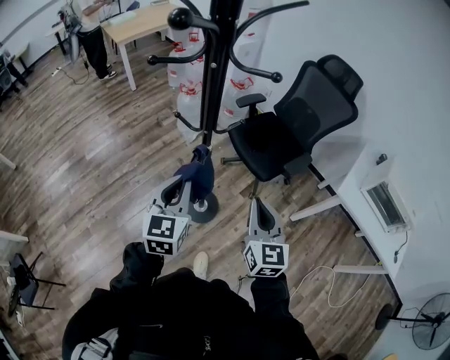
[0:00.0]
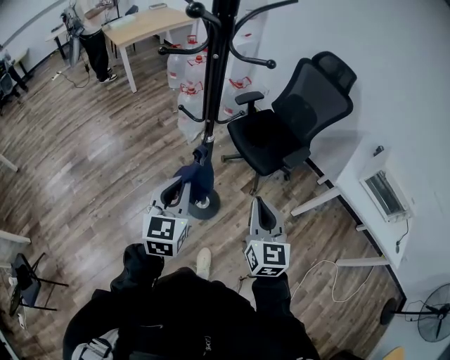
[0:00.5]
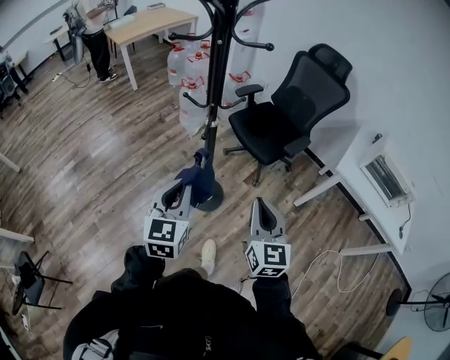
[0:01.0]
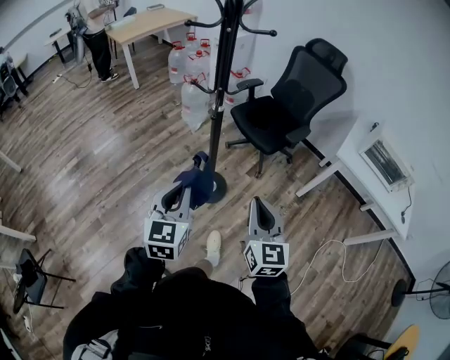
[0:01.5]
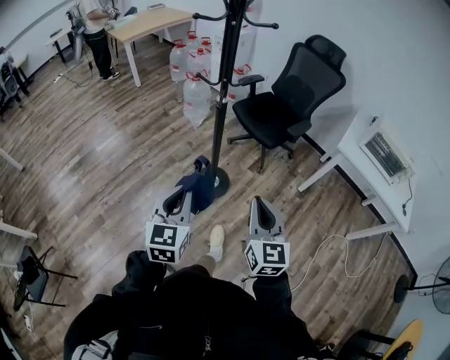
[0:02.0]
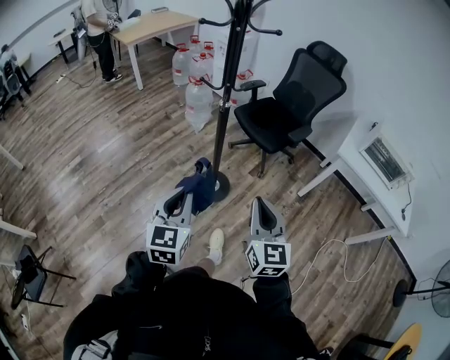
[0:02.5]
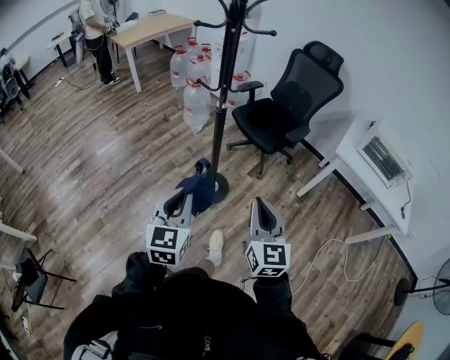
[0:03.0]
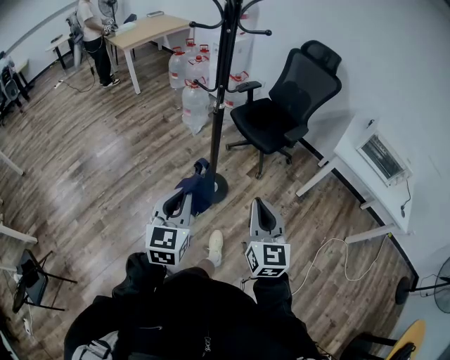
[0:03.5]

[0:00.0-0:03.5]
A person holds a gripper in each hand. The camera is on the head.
0:00.0 to 0:02.0: The grippers both shift backward by some 30 cm.
0:02.0 to 0:03.5: The grippers make only small movements.

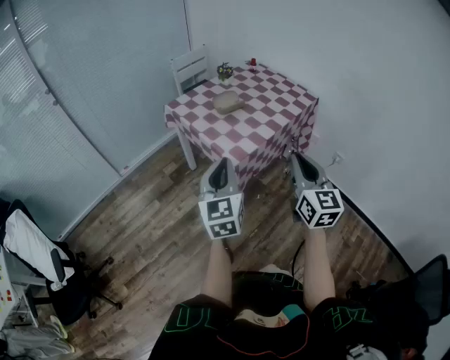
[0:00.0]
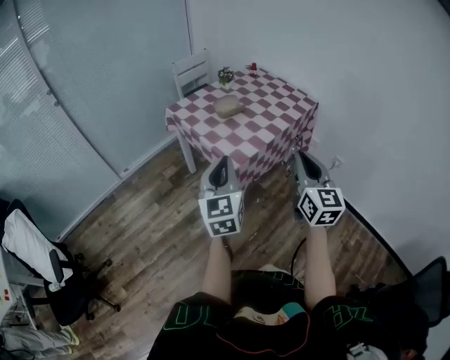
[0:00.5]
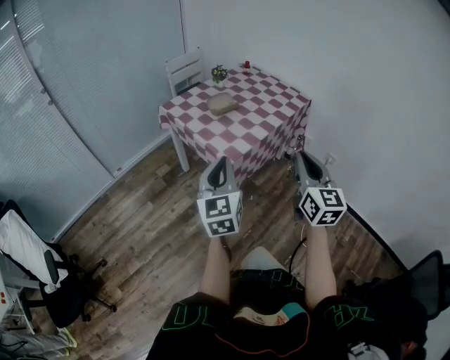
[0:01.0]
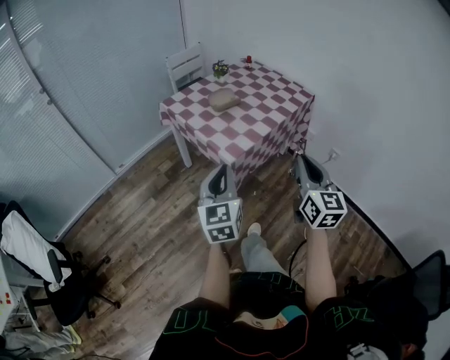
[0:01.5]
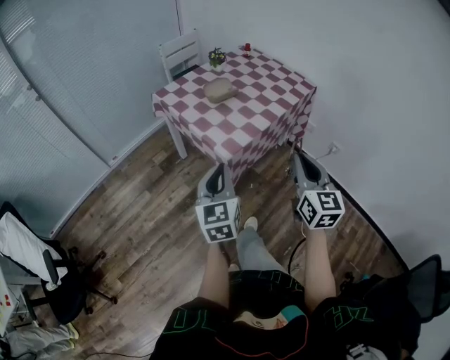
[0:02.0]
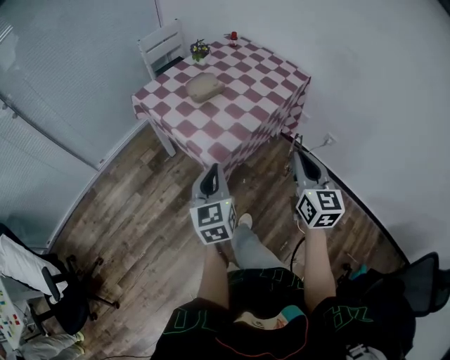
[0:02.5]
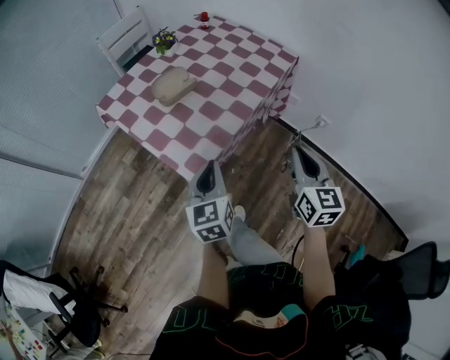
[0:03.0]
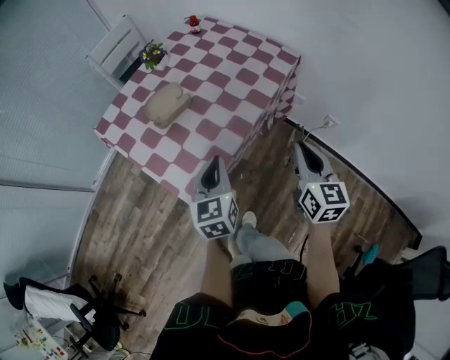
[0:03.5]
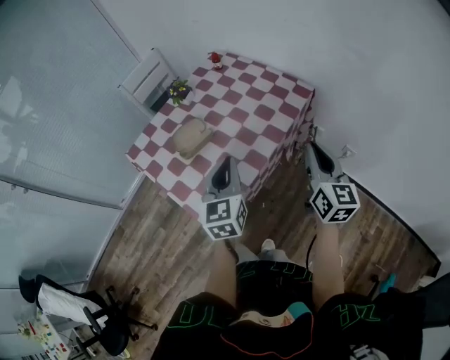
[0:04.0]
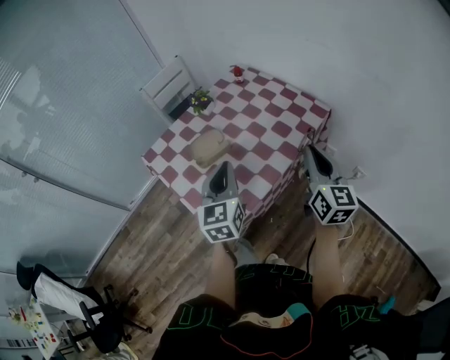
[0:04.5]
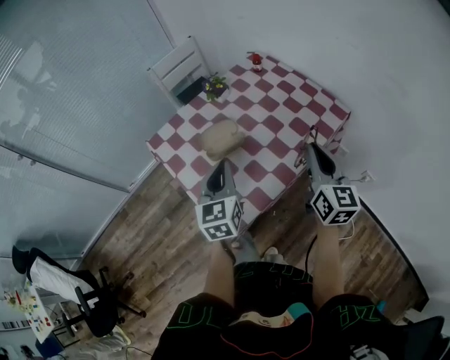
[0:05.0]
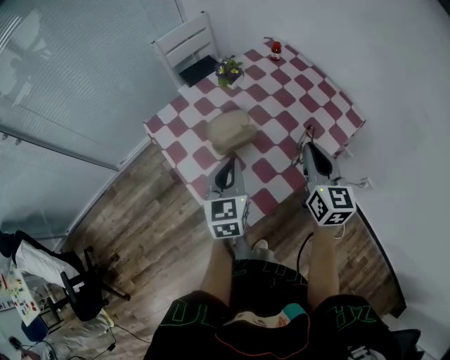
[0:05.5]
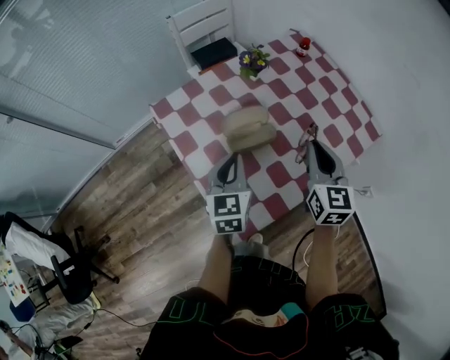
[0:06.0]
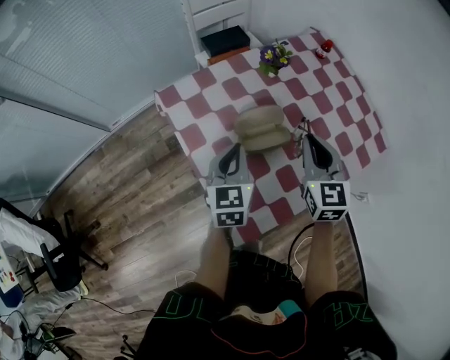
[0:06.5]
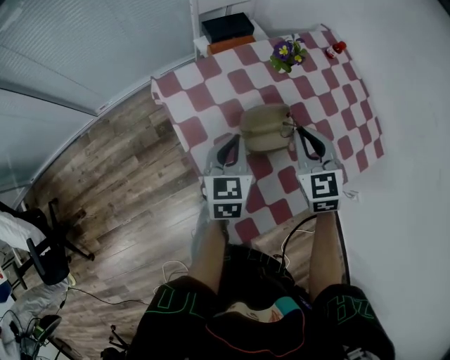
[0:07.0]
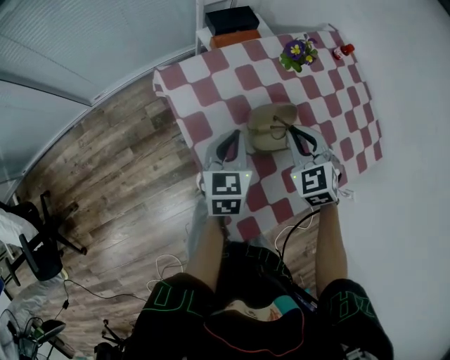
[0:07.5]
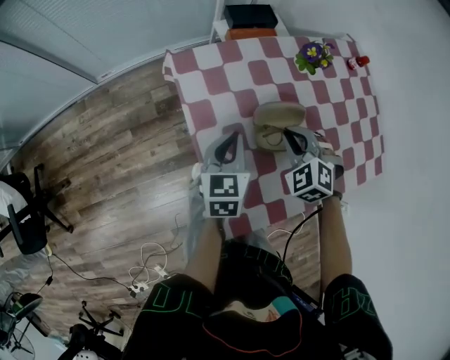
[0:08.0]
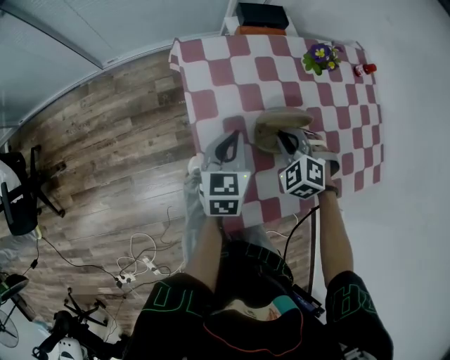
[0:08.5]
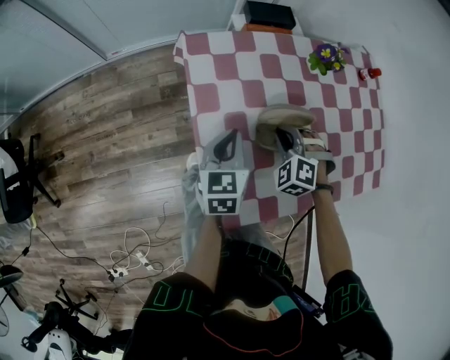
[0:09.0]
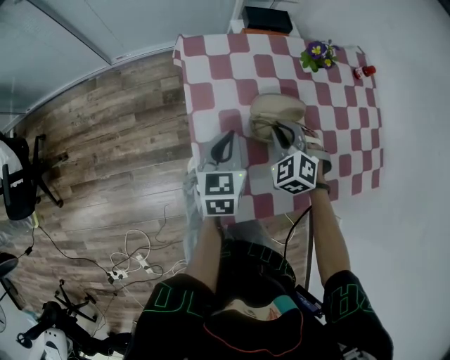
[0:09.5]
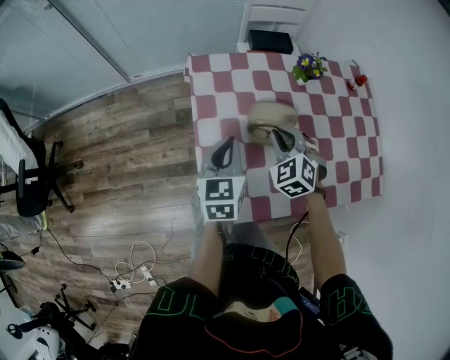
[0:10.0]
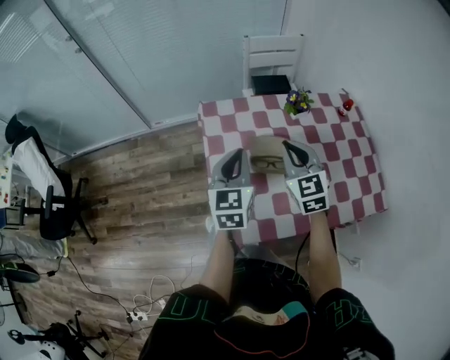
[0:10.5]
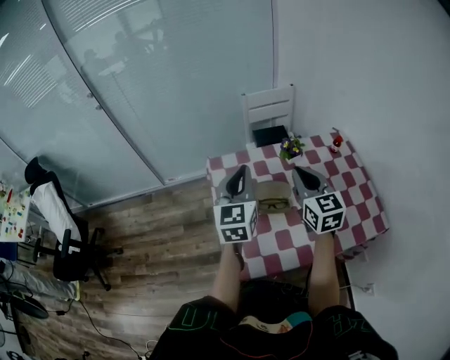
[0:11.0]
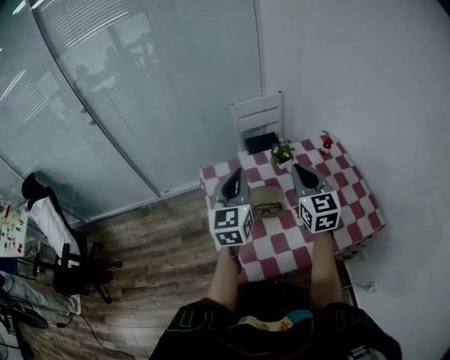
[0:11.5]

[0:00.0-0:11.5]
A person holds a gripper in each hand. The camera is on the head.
0:00.0 to 0:02.0: The left gripper travels downward by some 5 cm. The right gripper ends up about 5 cm from where it was.
0:02.0 to 0:04.0: The two grippers go about 35 cm forward and to the right.
0:04.0 to 0:06.0: The right gripper heads to the left and forward, covering approximately 30 cm, and rotates about 30 degrees; the left gripper heads to the left, forward and downward, covering approximately 25 cm.
0:06.0 to 0:07.5: The left gripper is displaced to the left, forward and downward by roughly 10 cm. The right gripper heads to the left, downward and forward, covering roughly 20 cm, and rolls counterclockwise, seen from behind, by about 40 degrees.
0:07.5 to 0:09.5: The right gripper moves downward, roughly 10 cm, and swivels approximately 30 degrees. Meanwhile the left gripper travels backward by roughly 5 cm.
0:09.5 to 0:11.5: The grippers both shift upward by some 30 cm. The left gripper rotates some 30 degrees. Meanwhile the right gripper angles its fingers upward, by approximately 40 degrees.

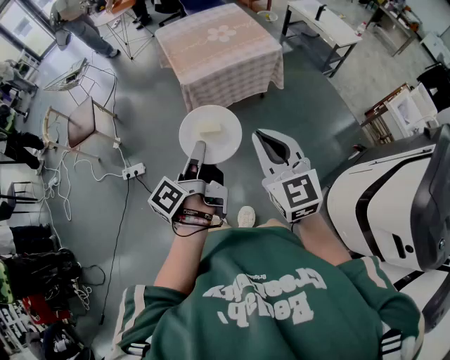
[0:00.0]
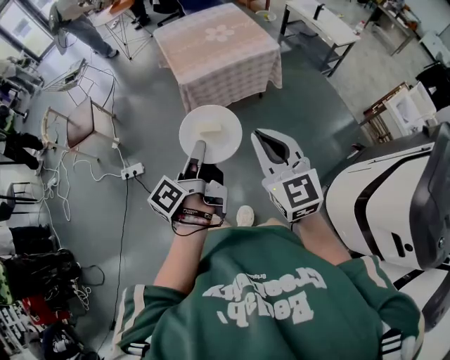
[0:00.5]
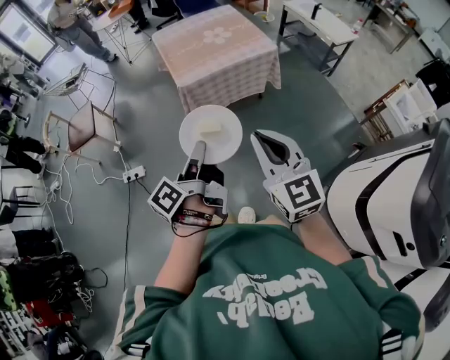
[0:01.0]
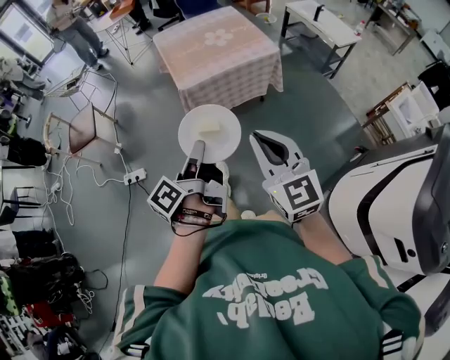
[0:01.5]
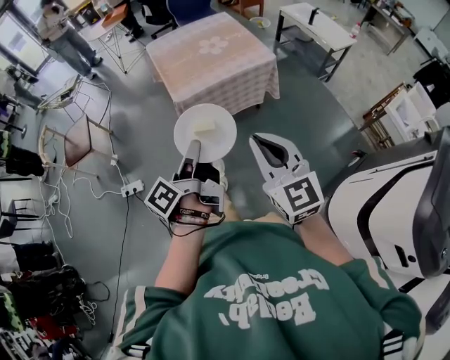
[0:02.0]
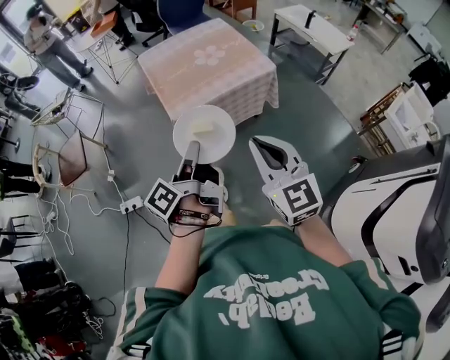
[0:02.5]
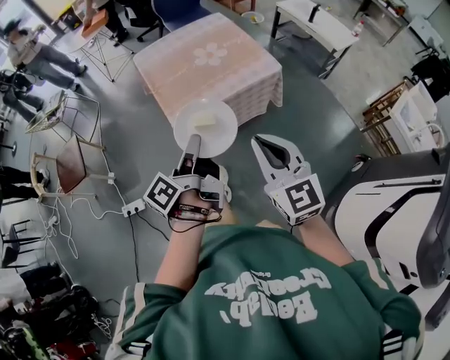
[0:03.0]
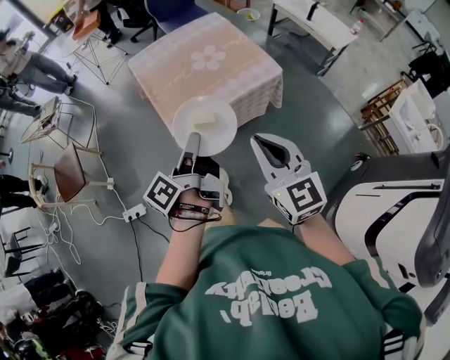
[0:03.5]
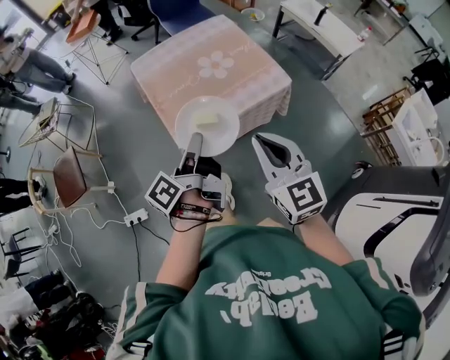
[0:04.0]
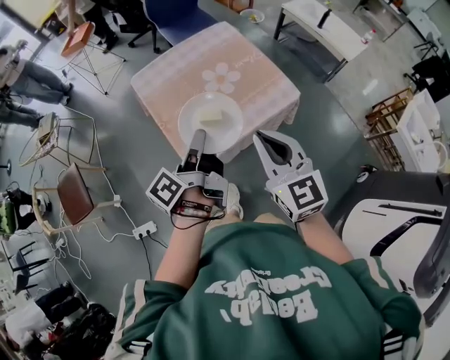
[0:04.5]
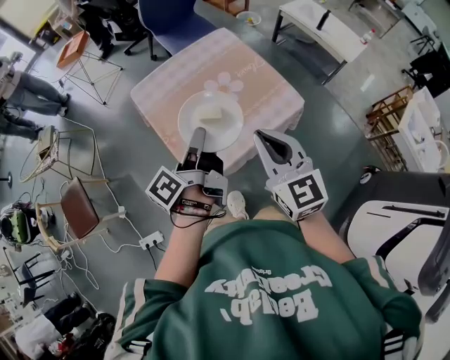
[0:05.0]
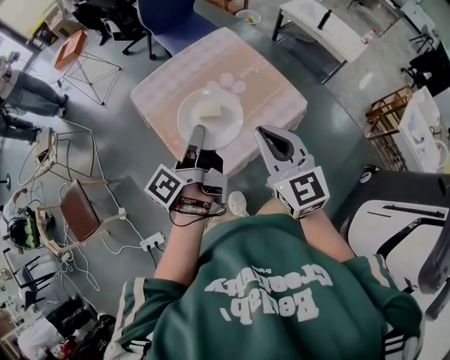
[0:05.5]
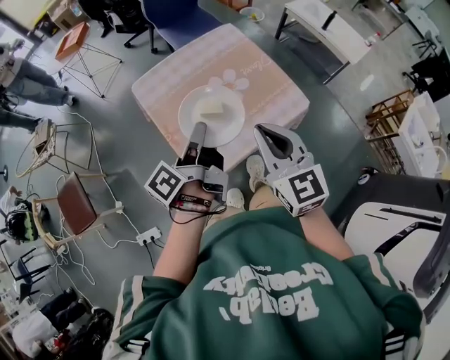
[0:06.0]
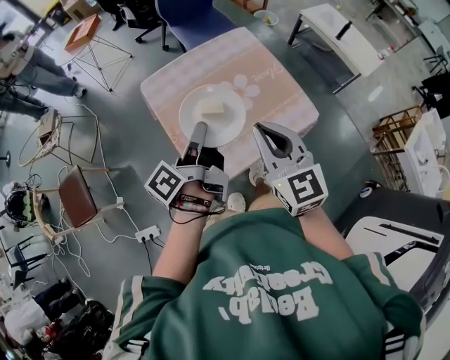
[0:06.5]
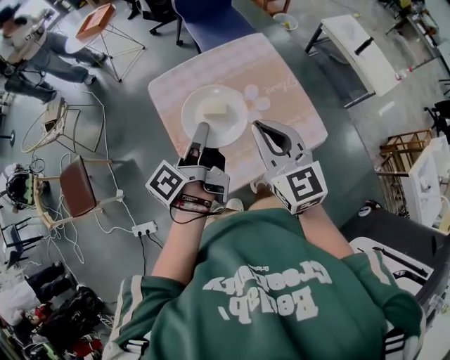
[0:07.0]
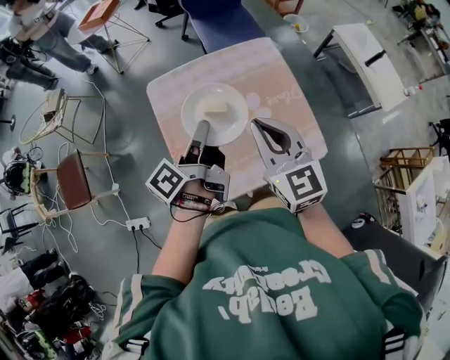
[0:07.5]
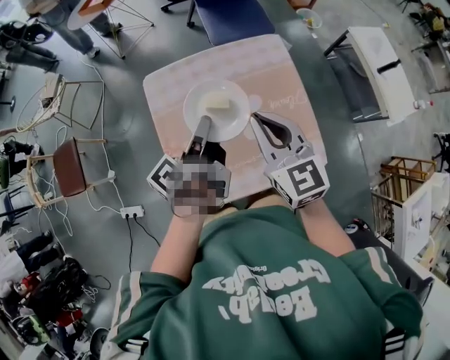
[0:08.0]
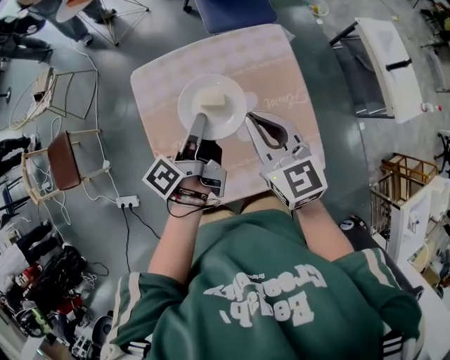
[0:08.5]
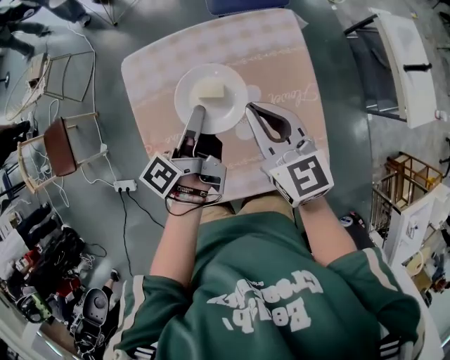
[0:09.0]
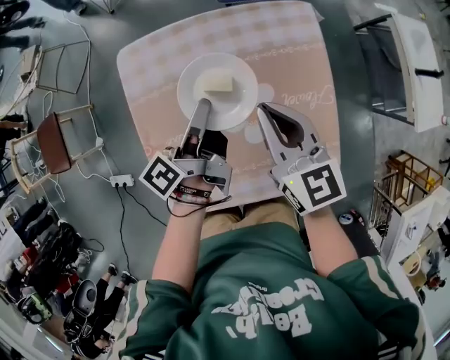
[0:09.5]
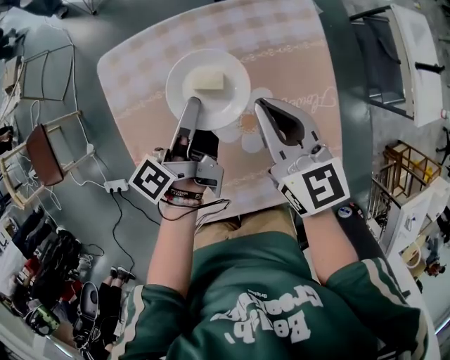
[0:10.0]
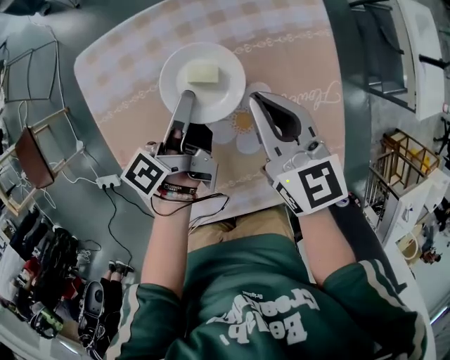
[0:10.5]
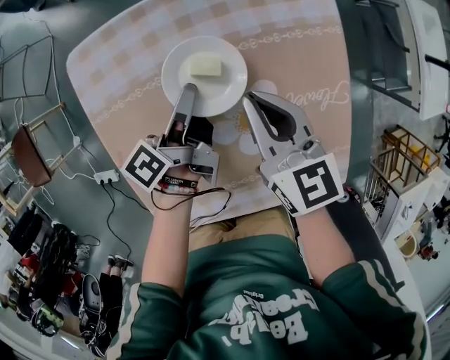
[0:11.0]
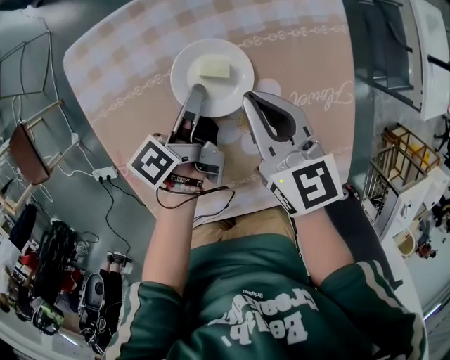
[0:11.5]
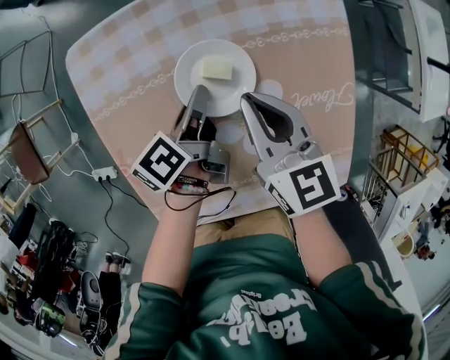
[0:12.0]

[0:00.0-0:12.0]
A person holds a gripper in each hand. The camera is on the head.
0:00.0 to 0:02.0: The right gripper moves approximately 5 cm.
0:02.0 to 0:04.0: The right gripper moves some 30 cm.
0:04.0 to 0:06.0: The right gripper moves approximately 20 cm.
0:06.0 to 0:08.0: The right gripper shifts by approximately 25 cm, and rotates roughly 20 degrees.
0:08.0 to 0:10.0: The right gripper shifts roughly 15 cm downward.
0:10.0 to 0:12.0: The right gripper heads downward, covering about 10 cm.
